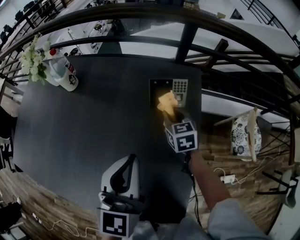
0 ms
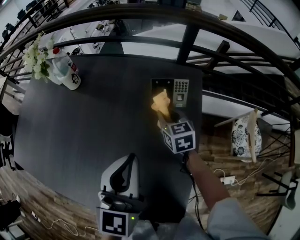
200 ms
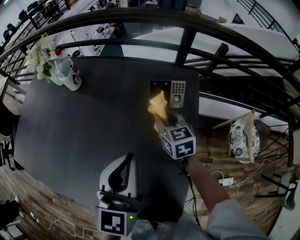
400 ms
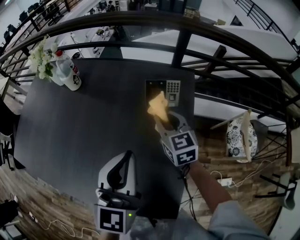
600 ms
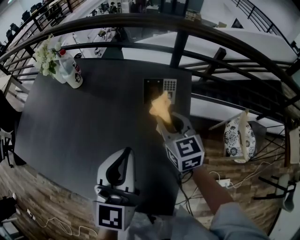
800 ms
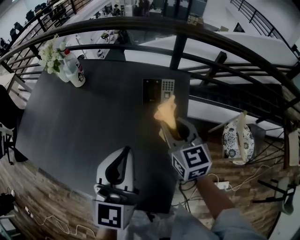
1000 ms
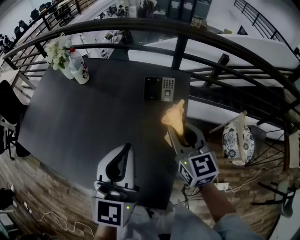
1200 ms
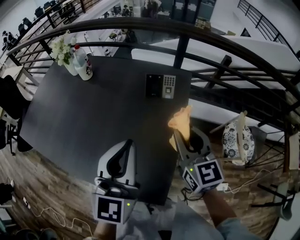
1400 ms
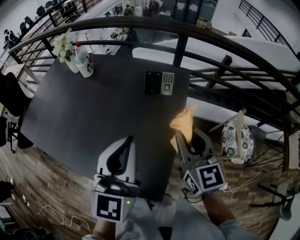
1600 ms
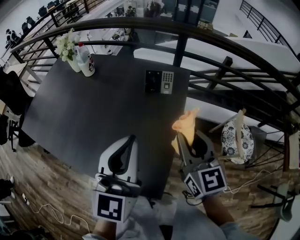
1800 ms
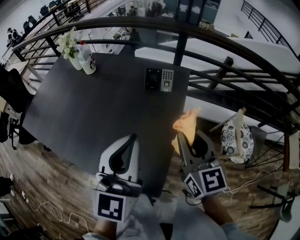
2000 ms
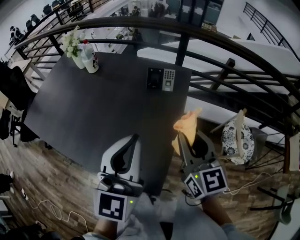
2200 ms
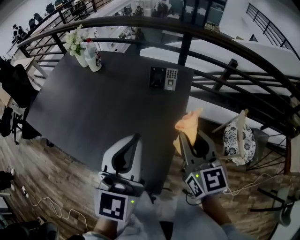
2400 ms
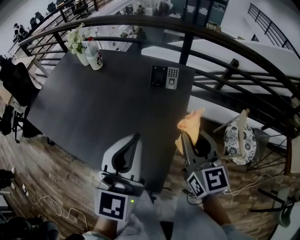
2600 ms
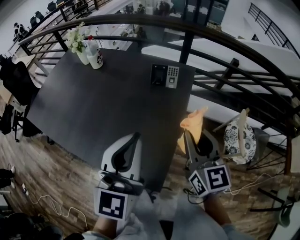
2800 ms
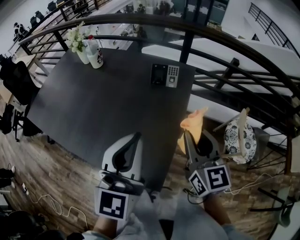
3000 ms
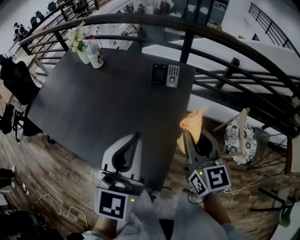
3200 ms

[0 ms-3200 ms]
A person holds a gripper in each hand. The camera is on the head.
0 ms to 1600 ms: The left gripper travels backward, upward and to the right by roughly 15 cm, while the right gripper goes some 35 cm backward and upward, and rotates roughly 30 degrees.
1600 ms to 3200 ms: Both grippers move backward, about 5 cm.

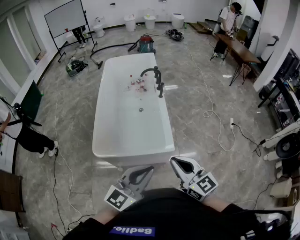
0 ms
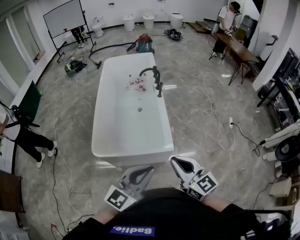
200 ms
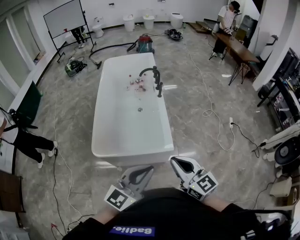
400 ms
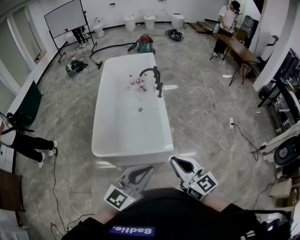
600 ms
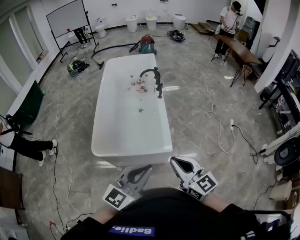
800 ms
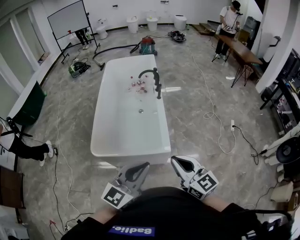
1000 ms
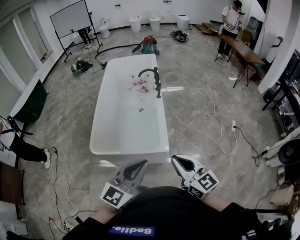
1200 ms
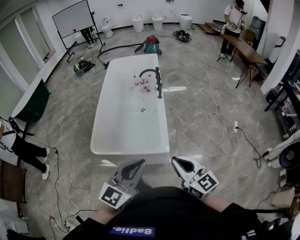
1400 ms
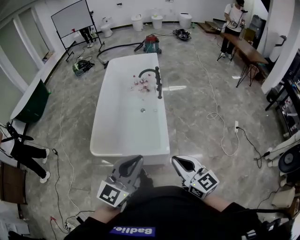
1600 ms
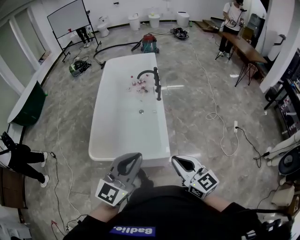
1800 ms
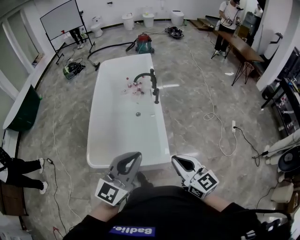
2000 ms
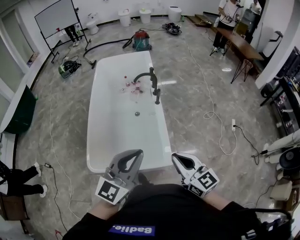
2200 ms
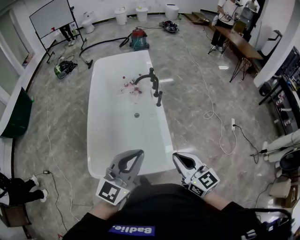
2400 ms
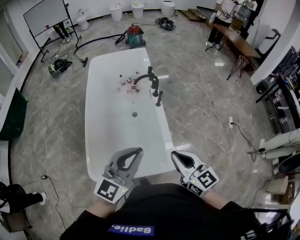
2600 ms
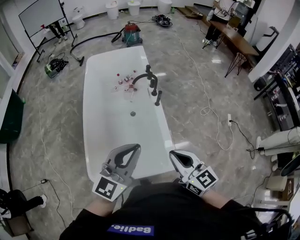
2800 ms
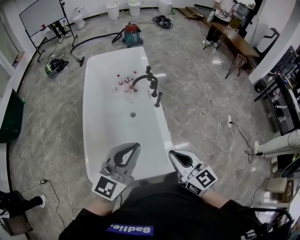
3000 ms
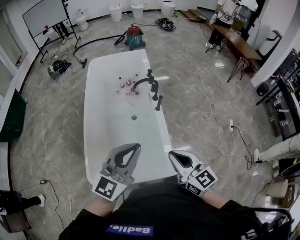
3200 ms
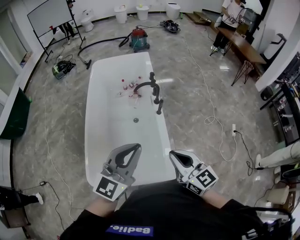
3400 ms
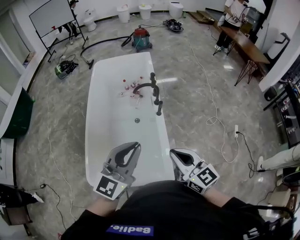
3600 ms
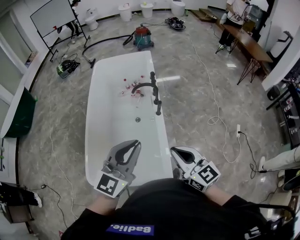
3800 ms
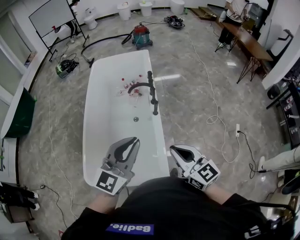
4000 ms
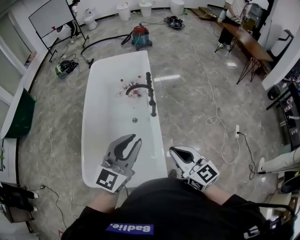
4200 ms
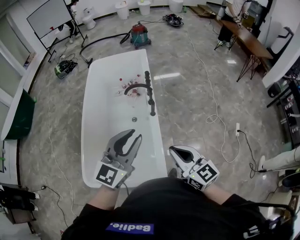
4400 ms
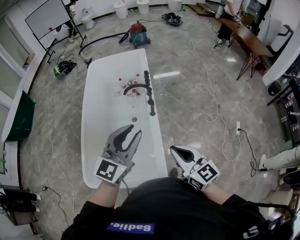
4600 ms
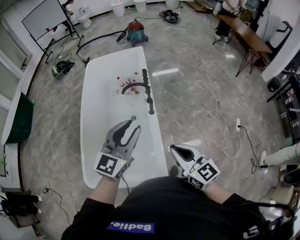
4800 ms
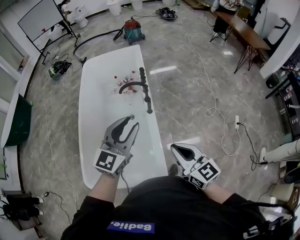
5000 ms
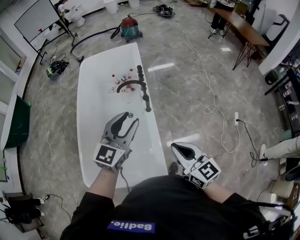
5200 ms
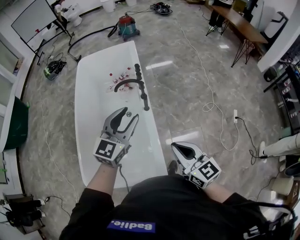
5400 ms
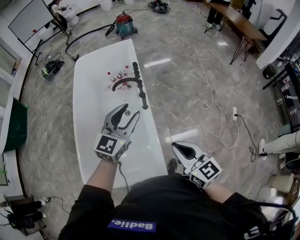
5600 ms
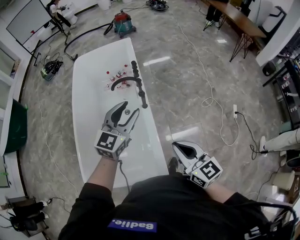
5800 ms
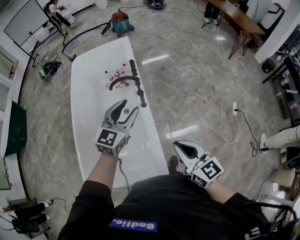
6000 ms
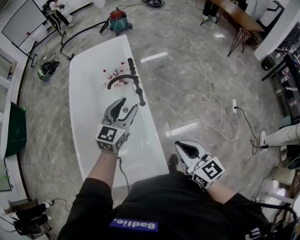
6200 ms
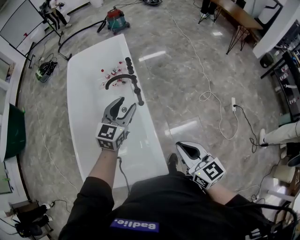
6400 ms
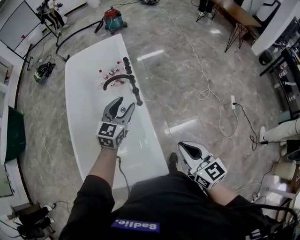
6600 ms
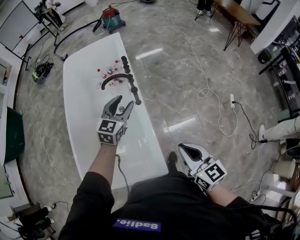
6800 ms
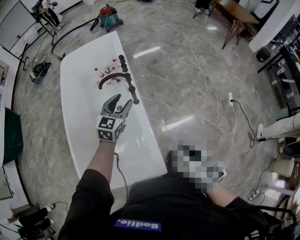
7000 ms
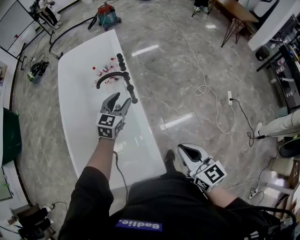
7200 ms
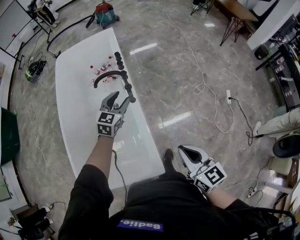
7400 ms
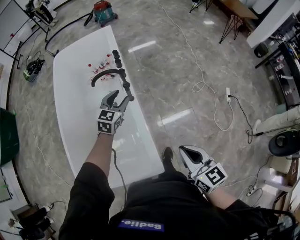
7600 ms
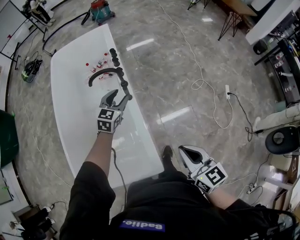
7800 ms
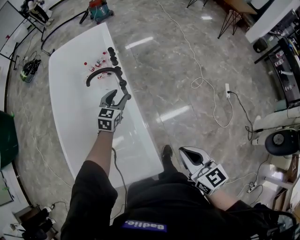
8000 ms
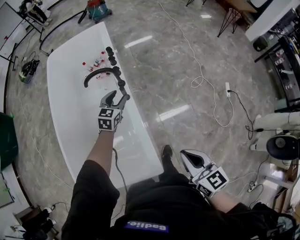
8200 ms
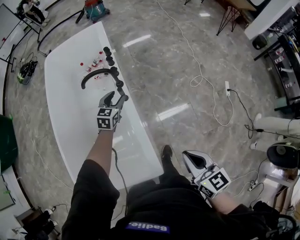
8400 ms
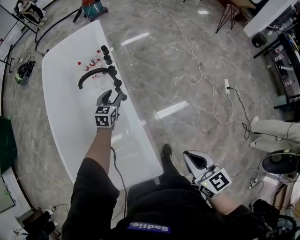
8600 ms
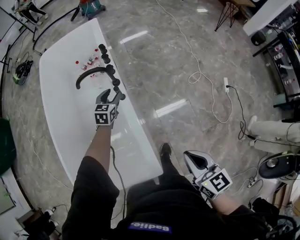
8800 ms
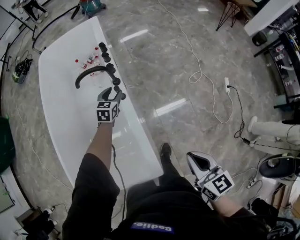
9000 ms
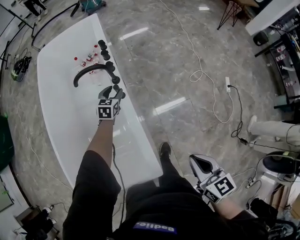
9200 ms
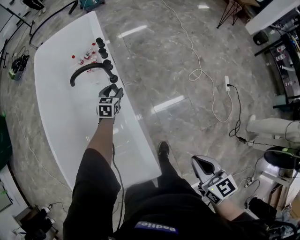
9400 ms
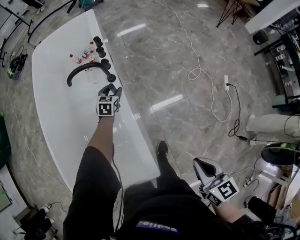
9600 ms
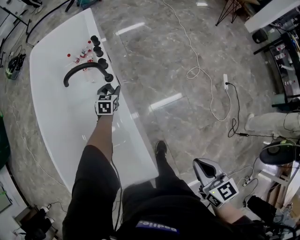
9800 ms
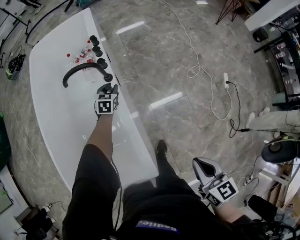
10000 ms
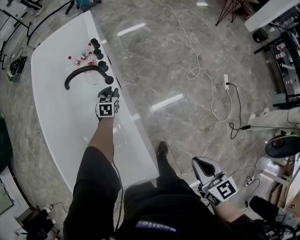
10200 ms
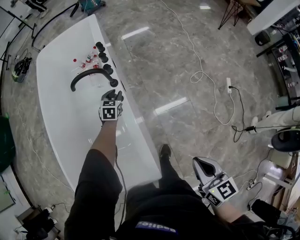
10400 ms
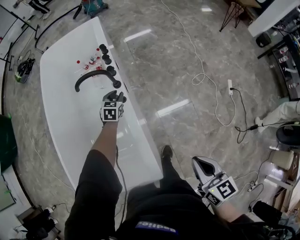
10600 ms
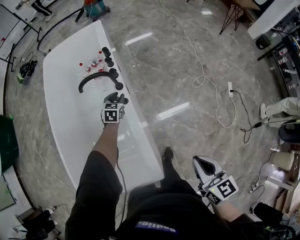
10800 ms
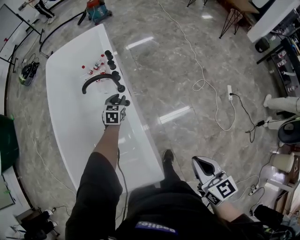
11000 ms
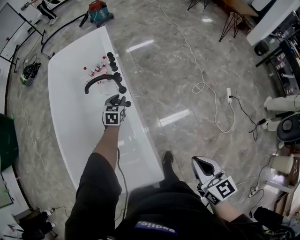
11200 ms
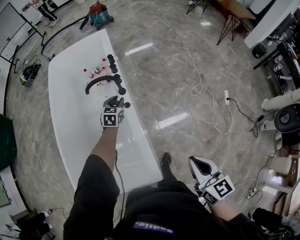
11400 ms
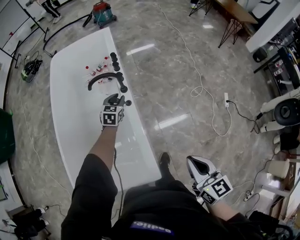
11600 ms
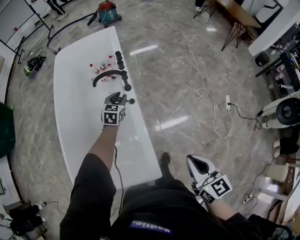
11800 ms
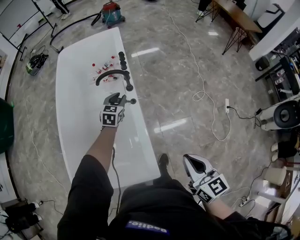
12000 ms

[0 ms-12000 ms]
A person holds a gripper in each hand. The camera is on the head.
0 ms to 1600 ms: The right gripper travels to the right by roughly 10 cm. The left gripper moves to the right, approximately 5 cm.
1600 ms to 3000 ms: Both grippers travel together forward and to the left, some 35 cm.
3000 ms to 4400 ms: The grippers both shift to the right and forward by approximately 20 cm.
4400 ms to 6000 ms: The right gripper shifts by roughly 5 cm; the left gripper shifts some 20 cm forward and downward, and opens its fingers.
6000 ms to 7600 ms: The left gripper heads downward and forward, covering about 20 cm. The right gripper travels downward and to the right by some 10 cm.
7600 ms to 9000 ms: The right gripper heads downward, covering approximately 5 cm. Meanwhile the left gripper travels downward and forward by approximately 20 cm.
9000 ms to 10400 ms: The left gripper shifts roughly 5 cm downward.
10400 ms to 12000 ms: The left gripper travels upward and backward by roughly 20 cm, while the right gripper travels upward and to the left by roughly 15 cm.

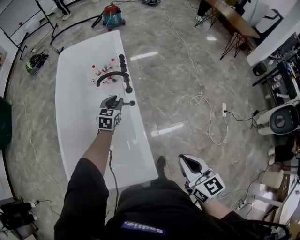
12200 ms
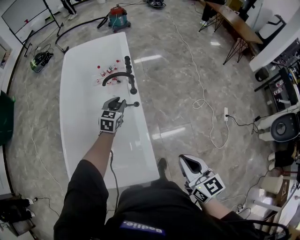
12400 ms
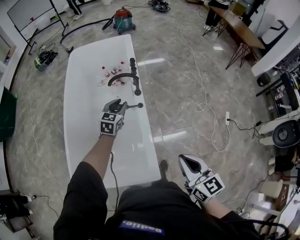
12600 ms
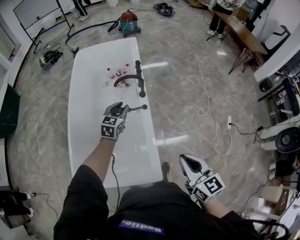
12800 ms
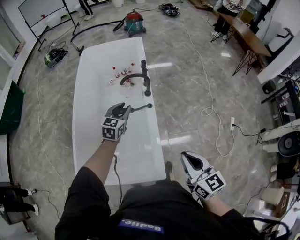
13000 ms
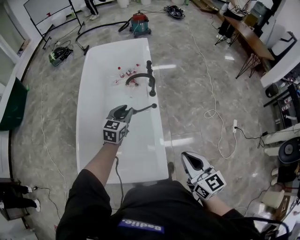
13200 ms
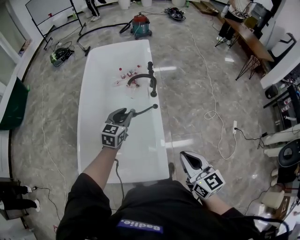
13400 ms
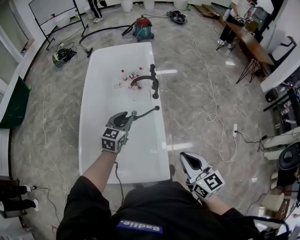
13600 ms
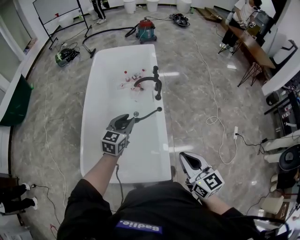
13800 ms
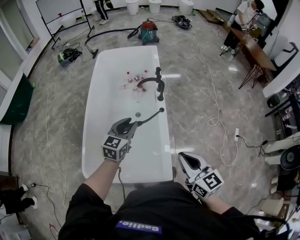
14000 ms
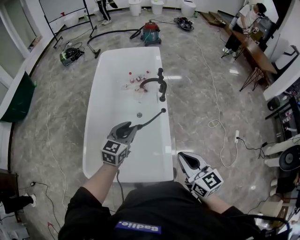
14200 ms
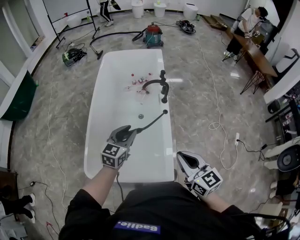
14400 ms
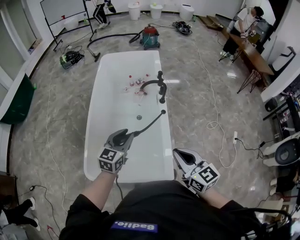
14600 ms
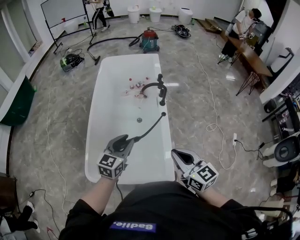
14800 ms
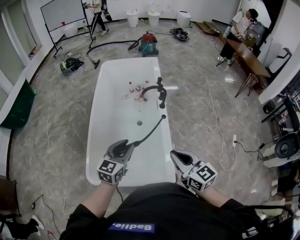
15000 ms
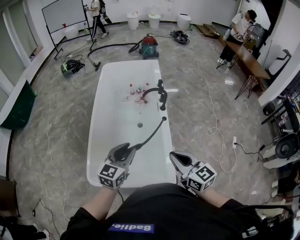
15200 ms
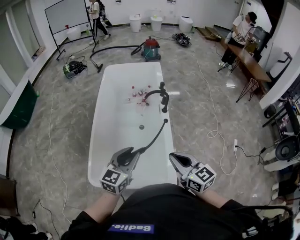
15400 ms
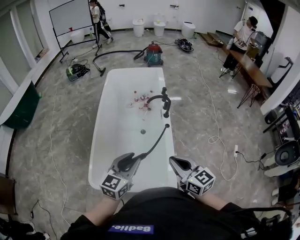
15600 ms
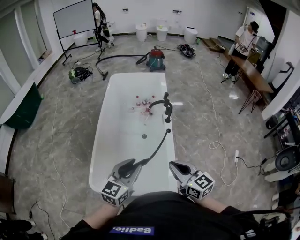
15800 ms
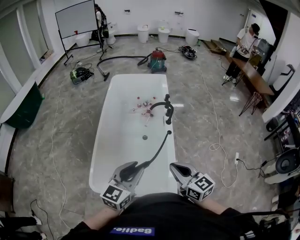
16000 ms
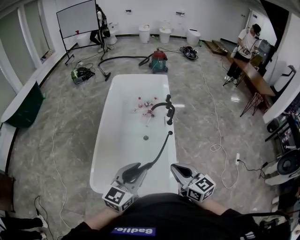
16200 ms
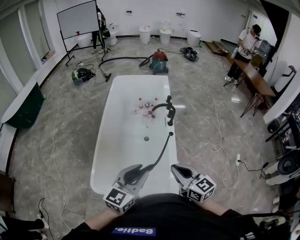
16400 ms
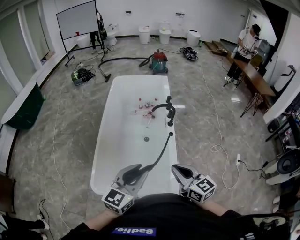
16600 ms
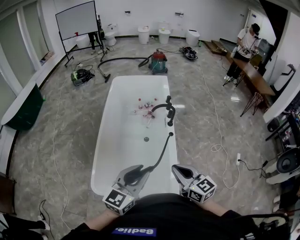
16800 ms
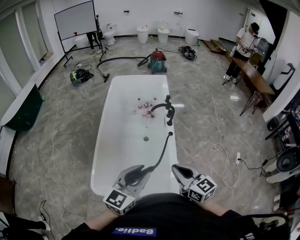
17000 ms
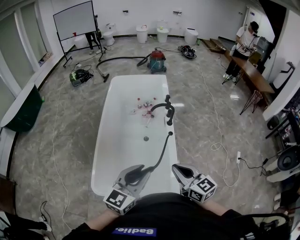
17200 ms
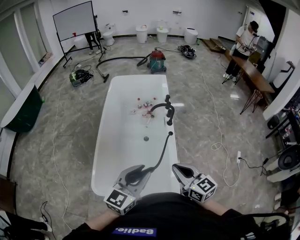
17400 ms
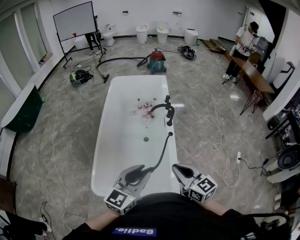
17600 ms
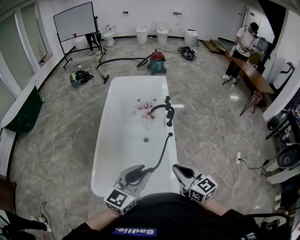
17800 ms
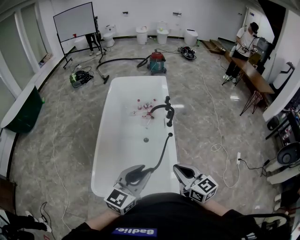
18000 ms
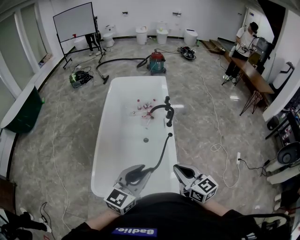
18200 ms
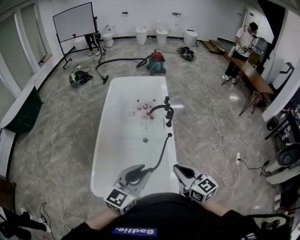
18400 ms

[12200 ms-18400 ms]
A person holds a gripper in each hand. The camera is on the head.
12200 ms to 13800 ms: The left gripper travels backward, to the left and upward by roughly 25 cm. Meanwhile the right gripper heads to the left and upward, covering approximately 15 cm.
13800 ms to 15400 ms: The right gripper heads to the left, covering about 10 cm. The left gripper travels backward, upward and to the left by about 20 cm.
15400 ms to 16800 ms: The left gripper is displaced upward by some 5 cm.
16800 ms to 18400 ms: The grippers make only small movements.

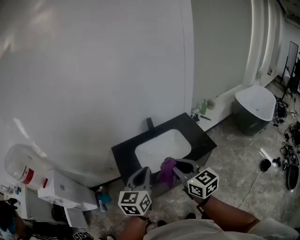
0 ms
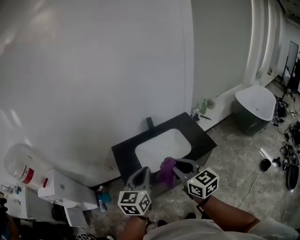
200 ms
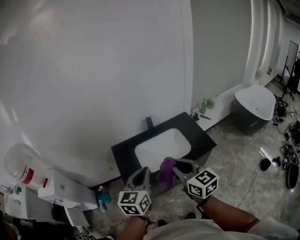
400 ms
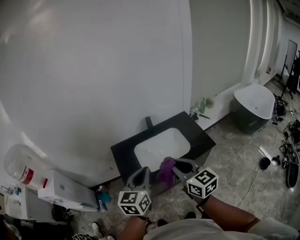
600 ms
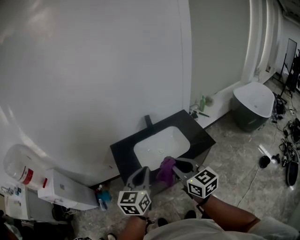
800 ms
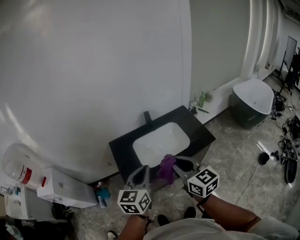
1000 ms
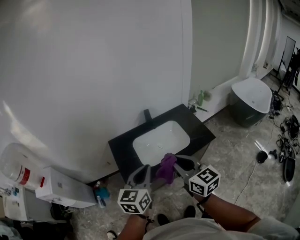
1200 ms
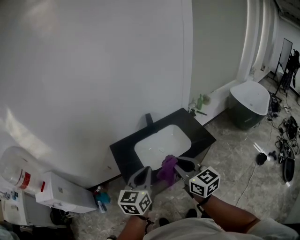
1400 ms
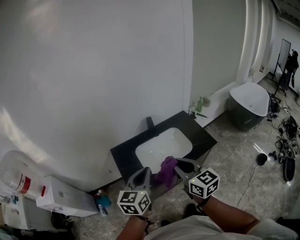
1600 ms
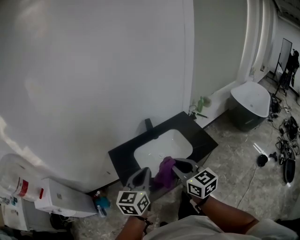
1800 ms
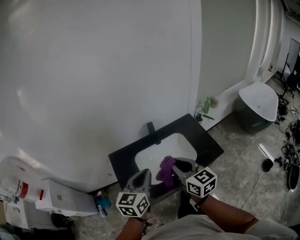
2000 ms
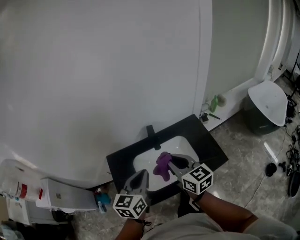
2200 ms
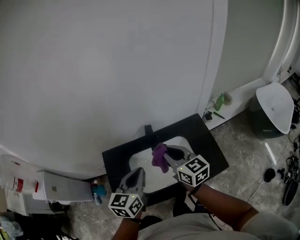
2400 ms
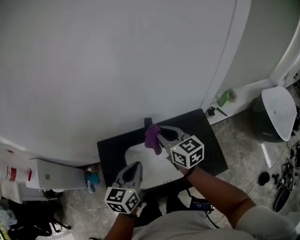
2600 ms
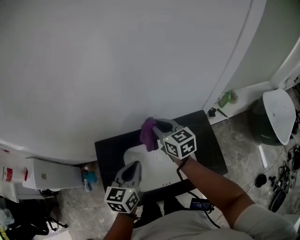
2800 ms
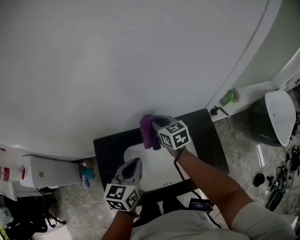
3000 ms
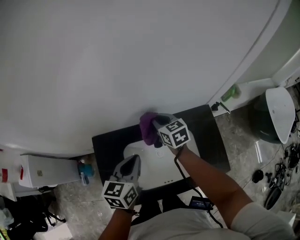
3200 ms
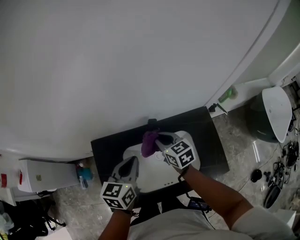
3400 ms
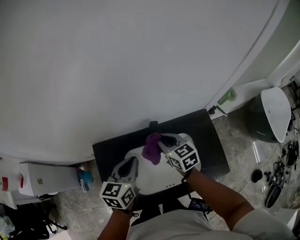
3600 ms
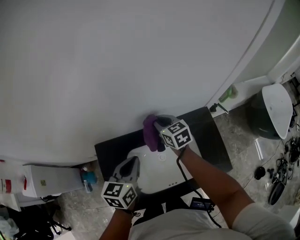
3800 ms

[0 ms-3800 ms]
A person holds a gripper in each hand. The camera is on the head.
0 ms to 1200 ms: The grippers make only small movements.
1200 ms to 2600 ms: The two grippers go some 35 cm forward.
2600 ms to 3800 ms: The right gripper heads forward and downward, covering roughly 20 cm. Meanwhile the left gripper is displaced forward by some 10 cm.
